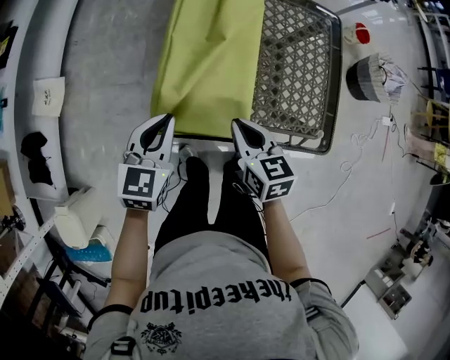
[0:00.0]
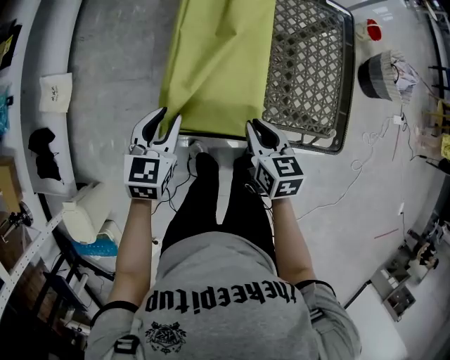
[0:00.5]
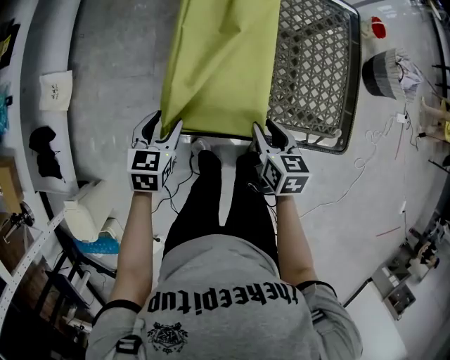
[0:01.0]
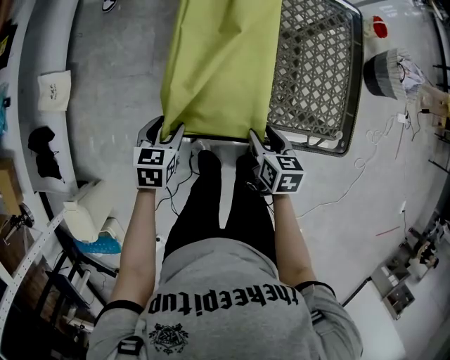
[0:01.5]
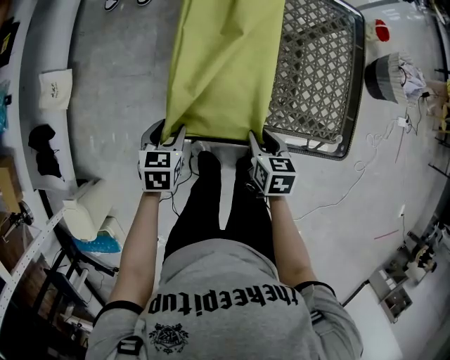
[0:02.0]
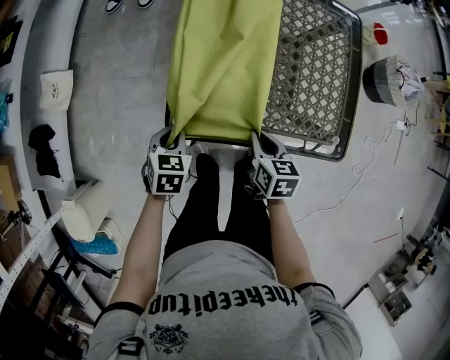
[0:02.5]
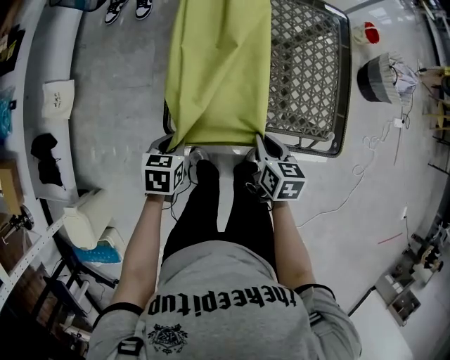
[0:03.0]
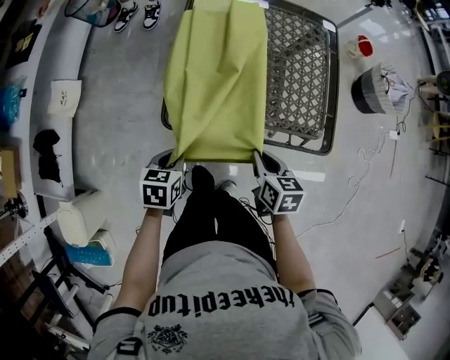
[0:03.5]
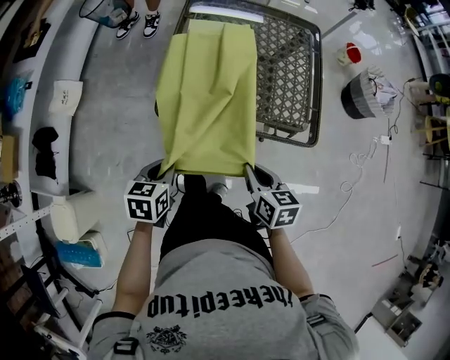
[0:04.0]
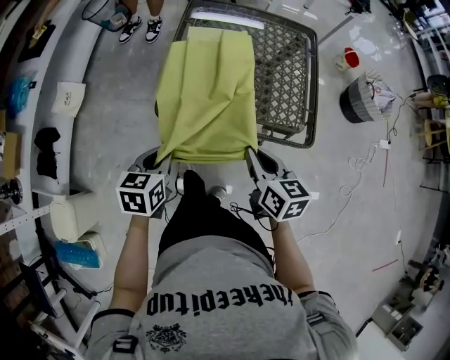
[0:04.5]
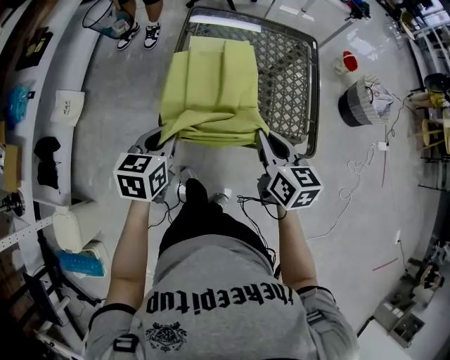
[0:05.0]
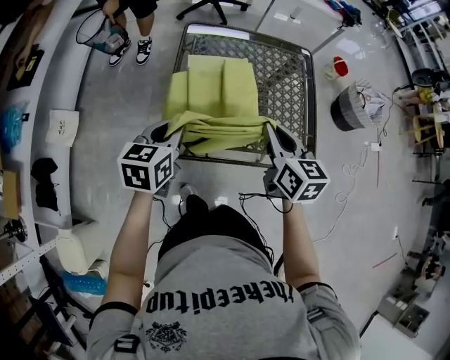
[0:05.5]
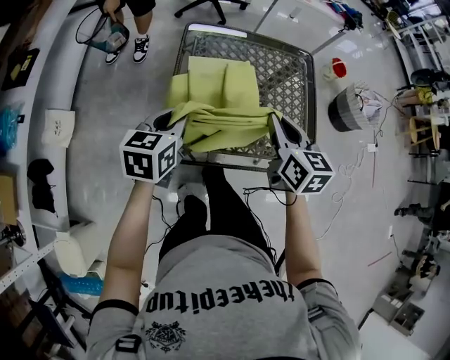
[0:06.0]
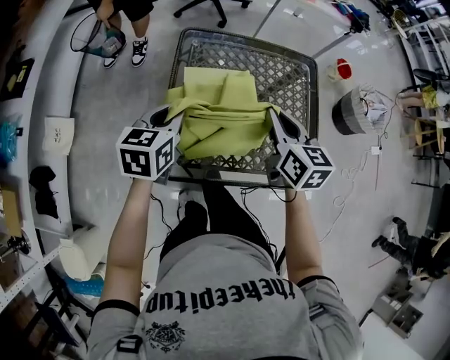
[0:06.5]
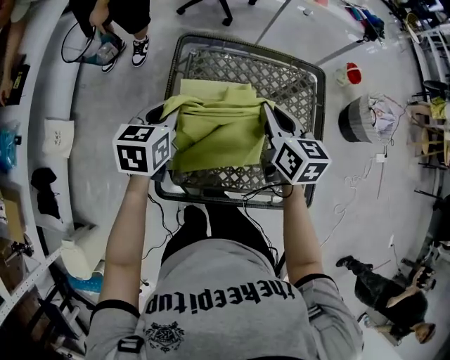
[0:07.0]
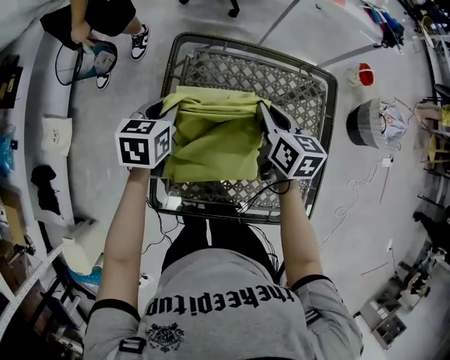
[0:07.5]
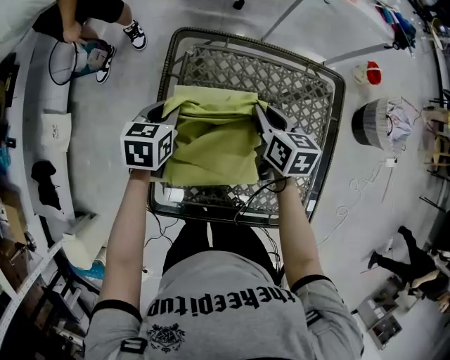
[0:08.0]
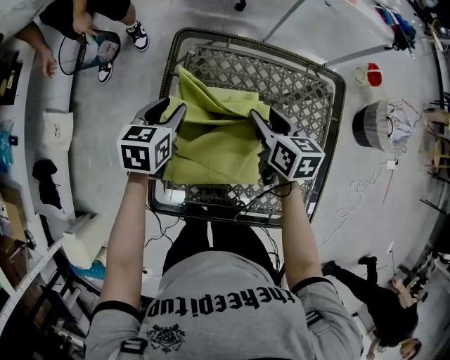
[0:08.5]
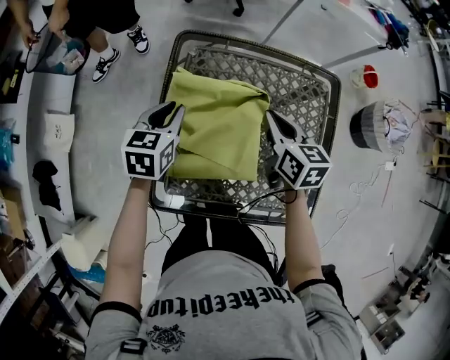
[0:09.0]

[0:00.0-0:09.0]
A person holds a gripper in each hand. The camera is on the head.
0:00.0 to 0:02.0: Both grippers move downward, approximately 15 cm. The left gripper turns by approximately 30 degrees, and opens up; the right gripper opens up.
0:02.0 to 0:04.5: Both grippers move upward and backward, some 20 cm. The left gripper closes up. The right gripper rotates some 20 degrees, and closes up.
0:04.5 to 0:07.0: The two grippers go roughly 35 cm forward.
0:07.0 to 0:09.0: The two grippers go about 5 cm downward. The right gripper opens and closes again; the left gripper opens, then closes again.

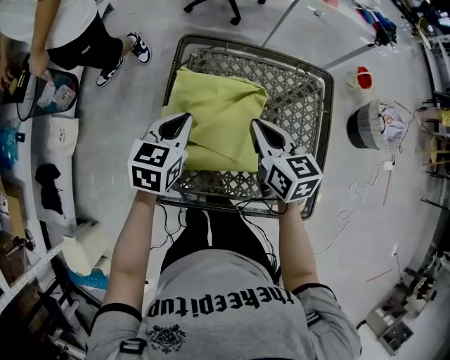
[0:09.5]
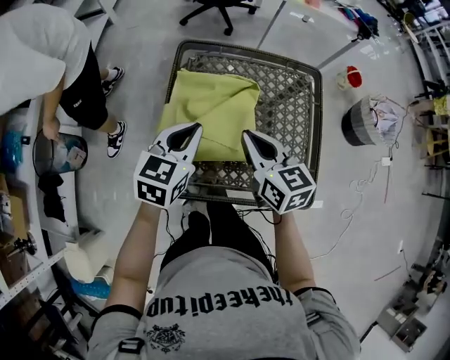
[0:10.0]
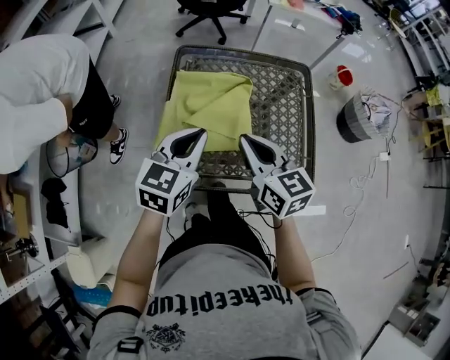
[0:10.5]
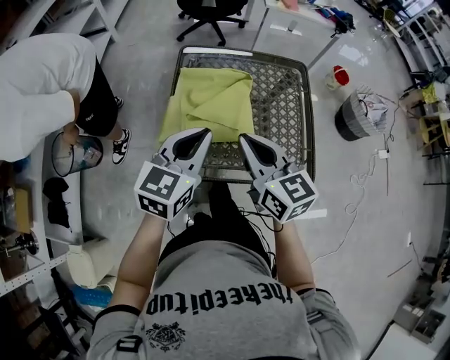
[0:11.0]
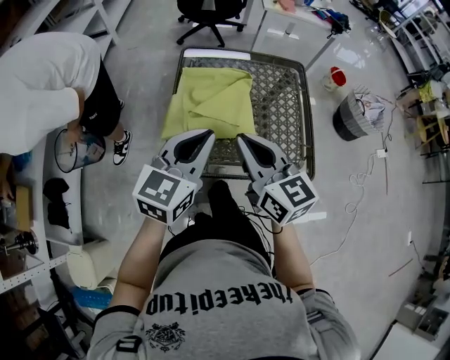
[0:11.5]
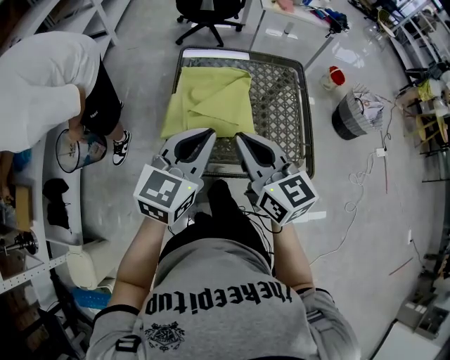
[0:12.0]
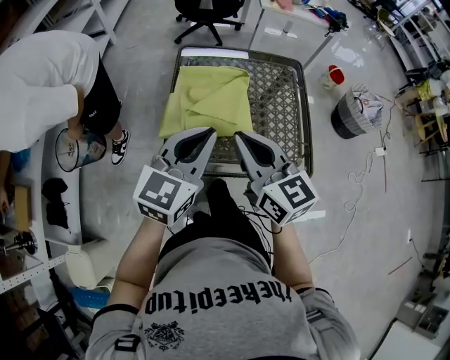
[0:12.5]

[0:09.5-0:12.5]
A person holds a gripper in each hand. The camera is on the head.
0:09.5 to 0:11.0: Both grippers move backward and upward, approximately 25 cm. The left gripper changes its angle by roughly 20 degrees.
0:11.0 to 0:12.5: The left gripper moves roughly 5 cm.

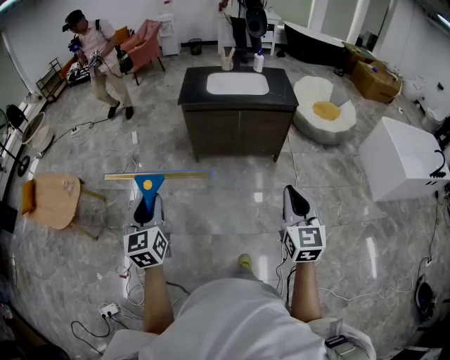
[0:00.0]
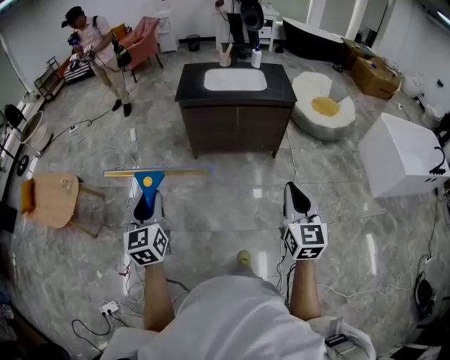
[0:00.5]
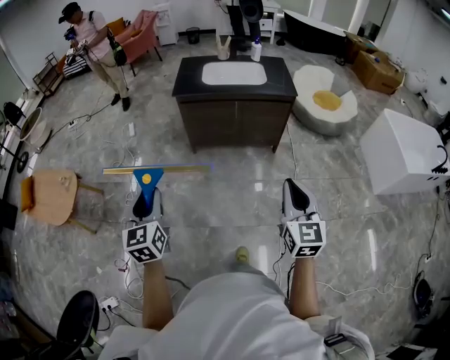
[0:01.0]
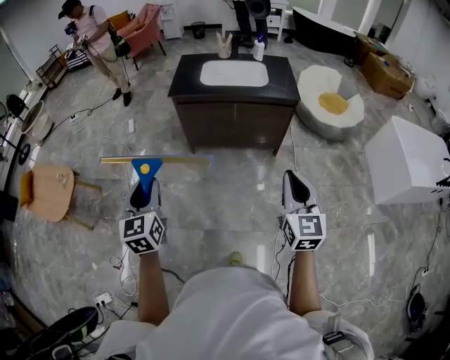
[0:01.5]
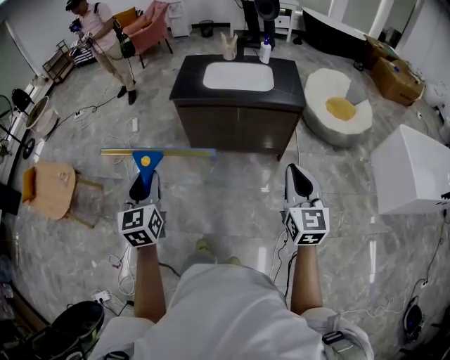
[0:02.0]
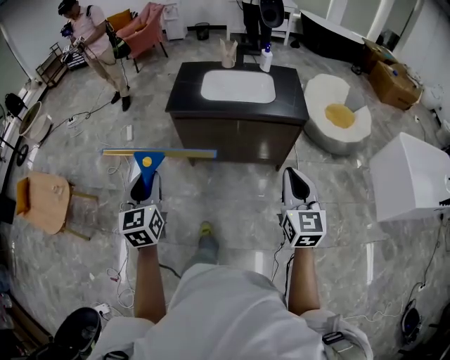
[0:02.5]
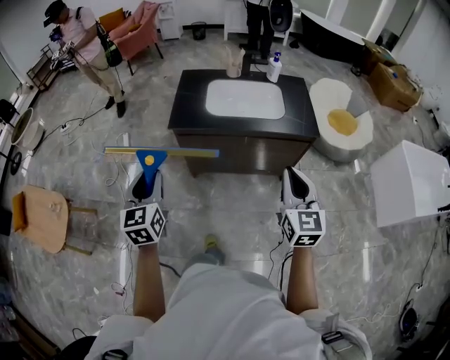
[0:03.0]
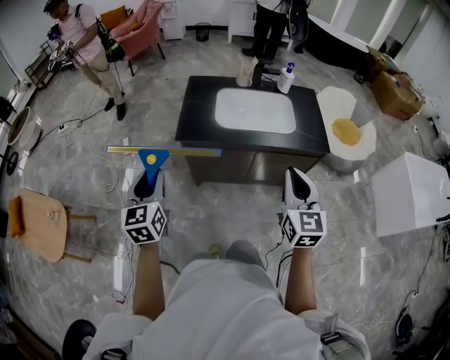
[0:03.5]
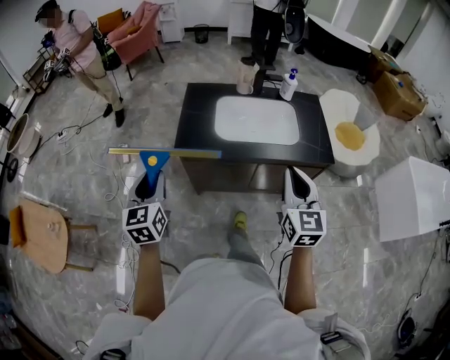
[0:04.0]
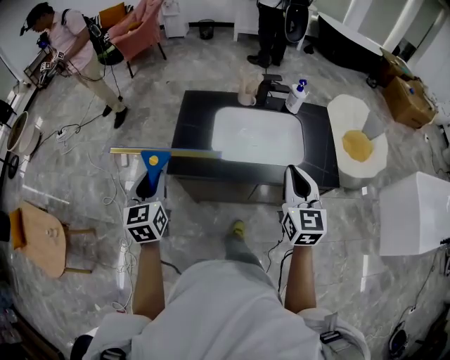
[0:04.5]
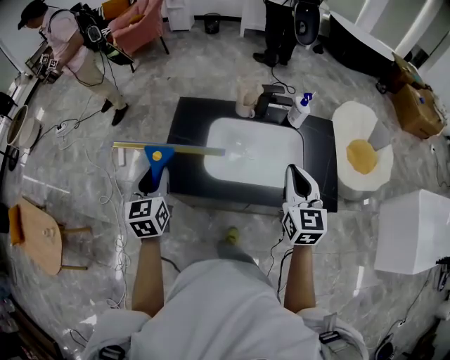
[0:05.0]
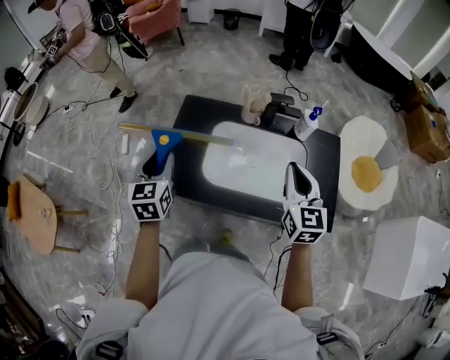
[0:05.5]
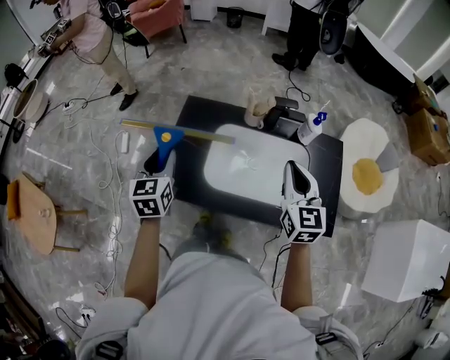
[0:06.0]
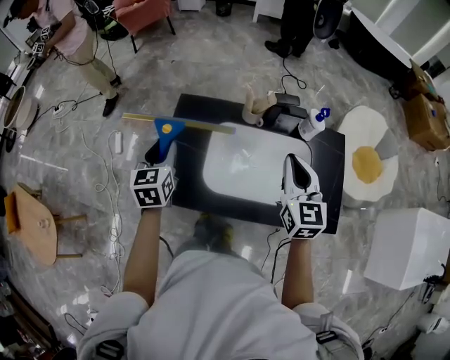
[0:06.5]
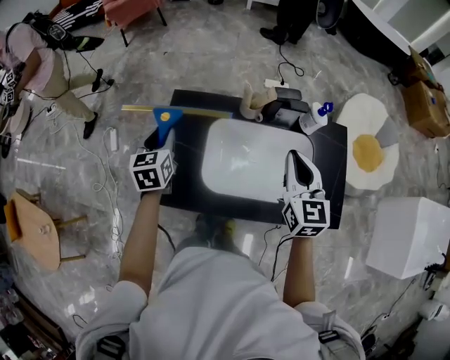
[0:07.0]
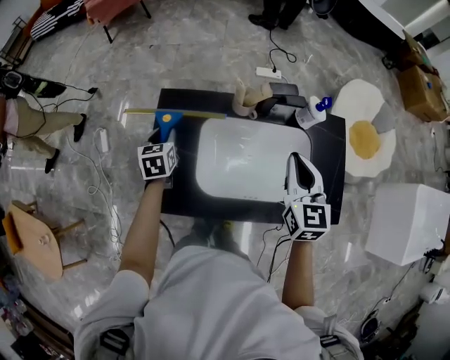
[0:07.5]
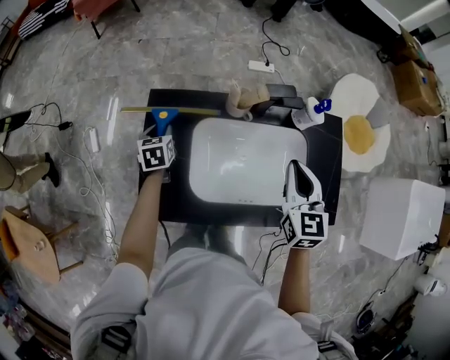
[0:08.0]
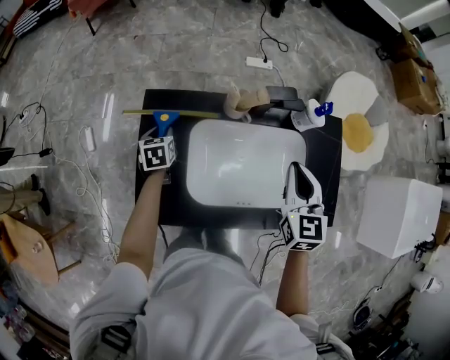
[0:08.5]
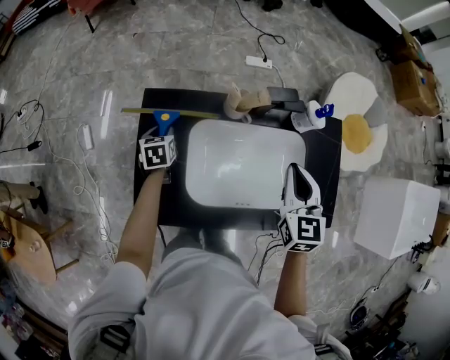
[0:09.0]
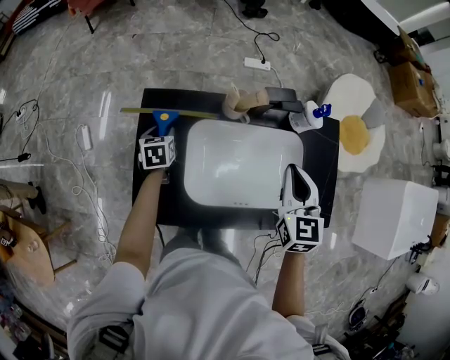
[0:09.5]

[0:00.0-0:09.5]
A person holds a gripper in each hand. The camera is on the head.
0:00.0 to 0:02.0: Both grippers travel together forward and to the right, roughly 20 cm.
0:02.0 to 0:04.0: Both grippers are carried forward, about 50 cm.
0:04.0 to 0:05.5: The left gripper goes some 35 cm forward and to the right. The right gripper is displaced forward by approximately 35 cm.
0:05.5 to 0:07.5: The left gripper travels forward and downward by roughly 30 cm, and rotates about 20 degrees, while the right gripper is displaced forward and downward by roughly 15 cm.
0:07.5 to 0:09.5: The left gripper travels downward and forward by roughly 10 cm.

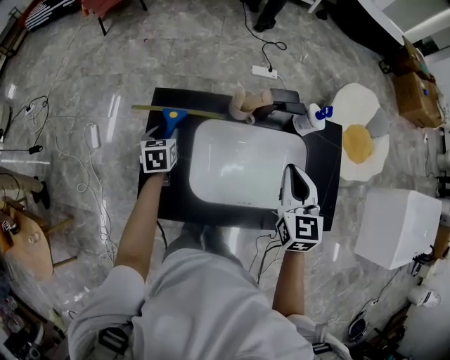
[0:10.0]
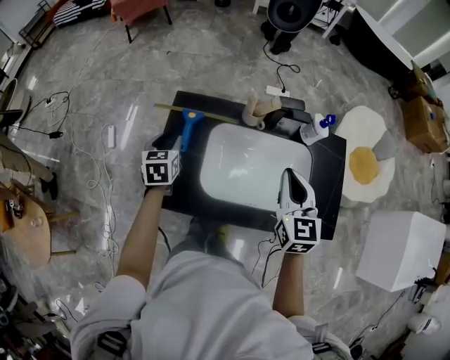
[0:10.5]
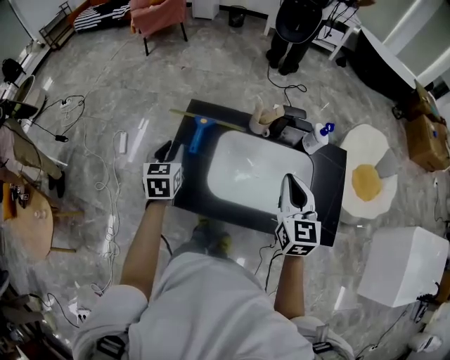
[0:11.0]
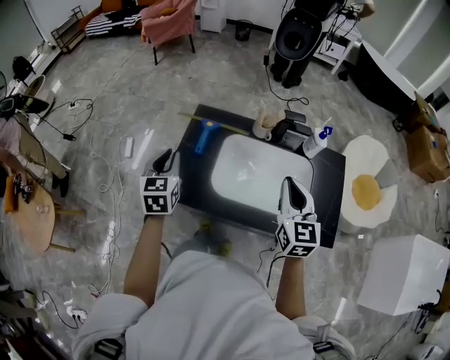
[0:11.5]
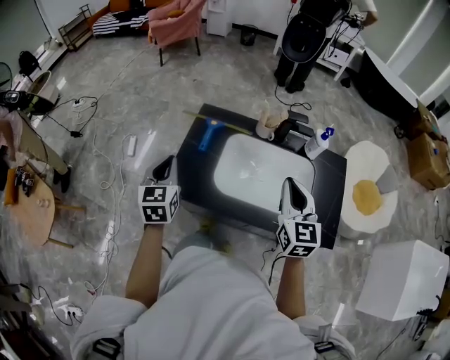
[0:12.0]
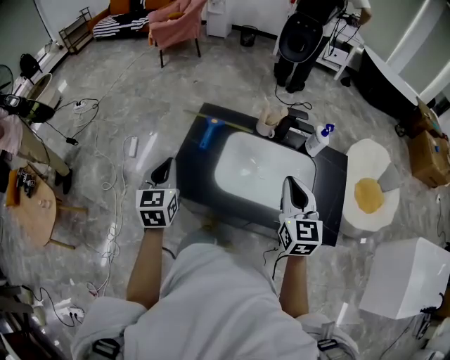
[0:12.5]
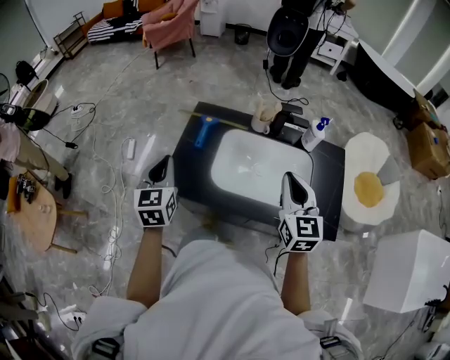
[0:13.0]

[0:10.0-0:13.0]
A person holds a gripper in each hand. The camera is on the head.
0:10.0 to 0:11.5: The right gripper goes approximately 15 cm backward and upward, while the left gripper moves backward and upward, some 30 cm, changes its angle by some 20 degrees, and closes its fingers.
0:11.5 to 0:13.0: The left gripper goes about 5 cm backward.

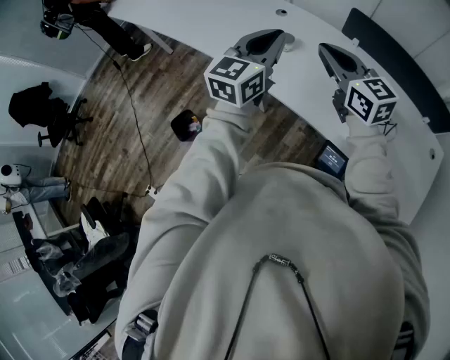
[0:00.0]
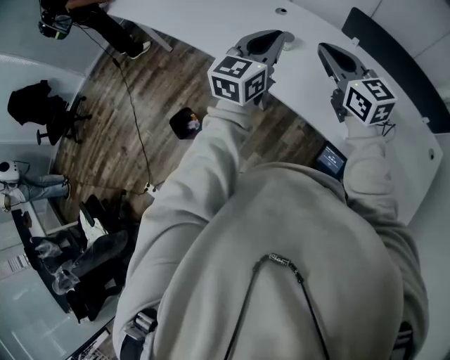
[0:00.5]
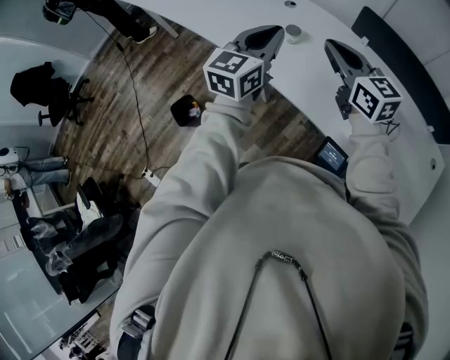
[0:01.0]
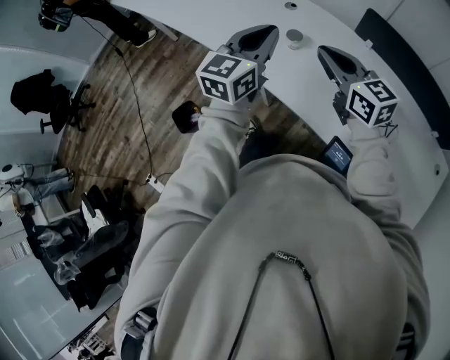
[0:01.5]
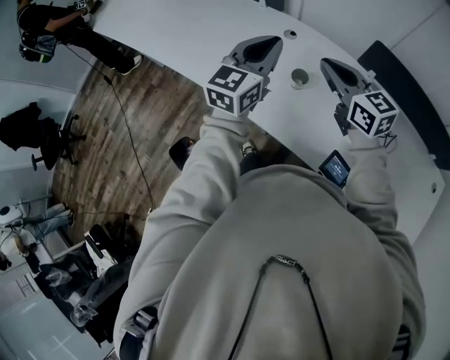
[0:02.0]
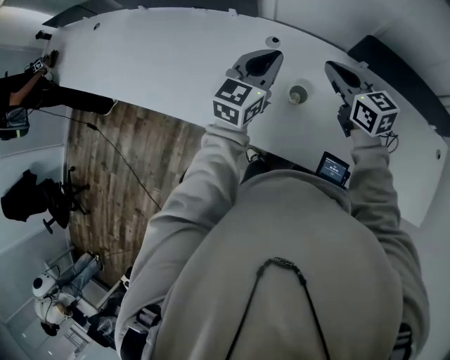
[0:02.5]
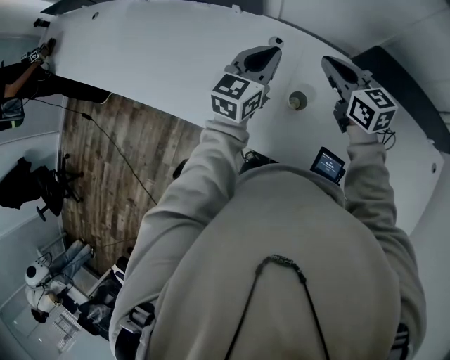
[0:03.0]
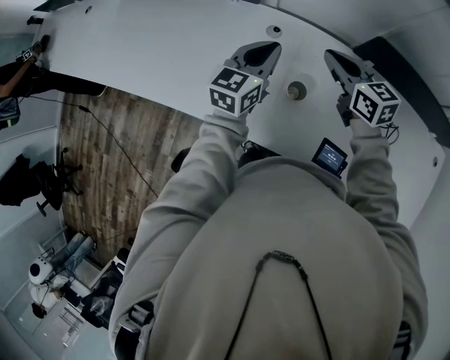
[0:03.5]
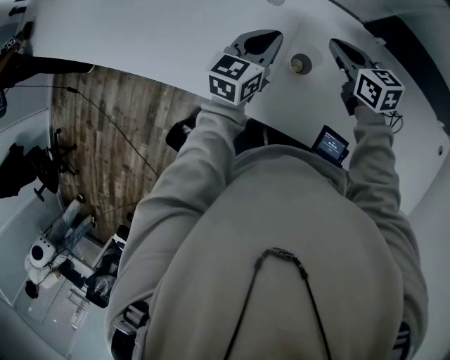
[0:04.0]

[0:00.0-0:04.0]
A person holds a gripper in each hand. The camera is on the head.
0:00.0 to 0:02.0: The grippers both shift forward by about 20 cm.
0:02.0 to 0:04.0: Both grippers travel together forward and downward, about 25 cm. The right gripper turns by some 30 degrees. Meanwhile the left gripper changes its angle by approximately 30 degrees.
